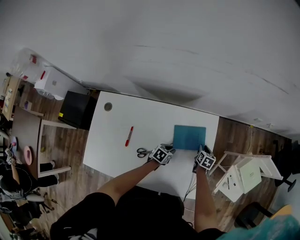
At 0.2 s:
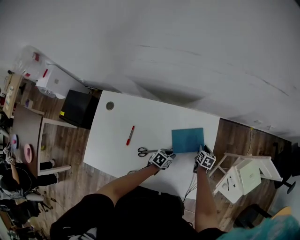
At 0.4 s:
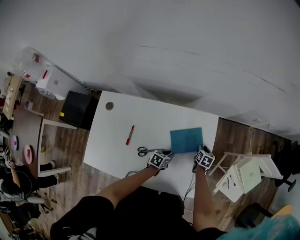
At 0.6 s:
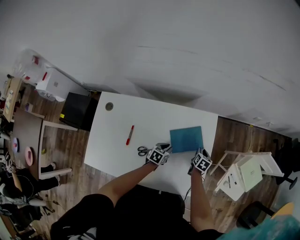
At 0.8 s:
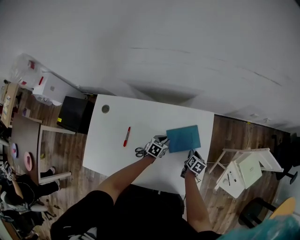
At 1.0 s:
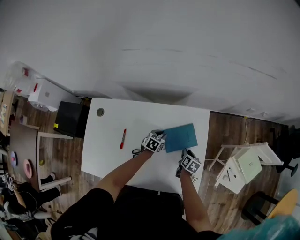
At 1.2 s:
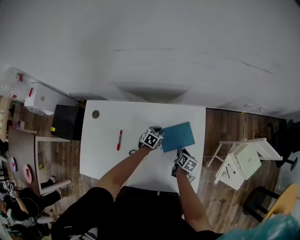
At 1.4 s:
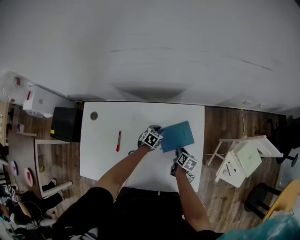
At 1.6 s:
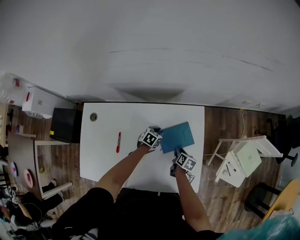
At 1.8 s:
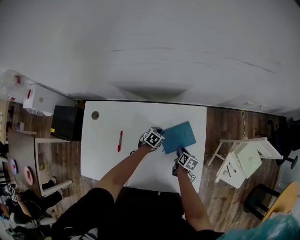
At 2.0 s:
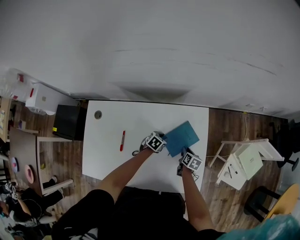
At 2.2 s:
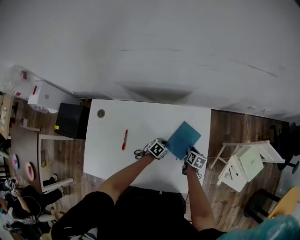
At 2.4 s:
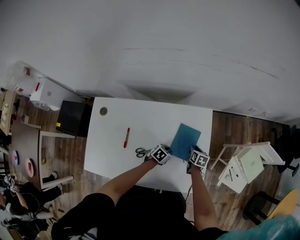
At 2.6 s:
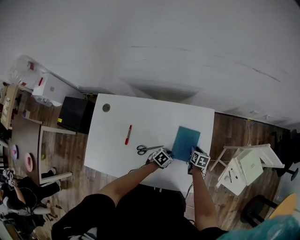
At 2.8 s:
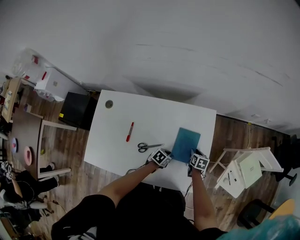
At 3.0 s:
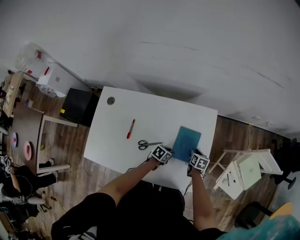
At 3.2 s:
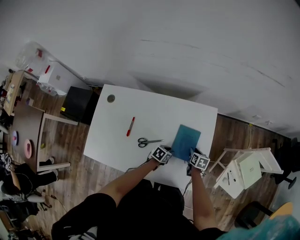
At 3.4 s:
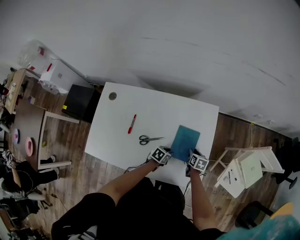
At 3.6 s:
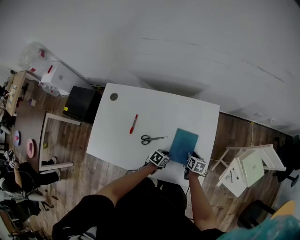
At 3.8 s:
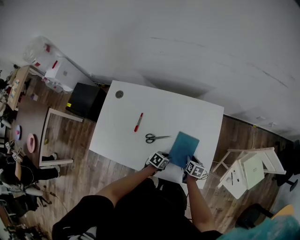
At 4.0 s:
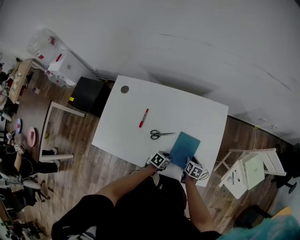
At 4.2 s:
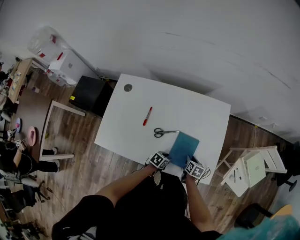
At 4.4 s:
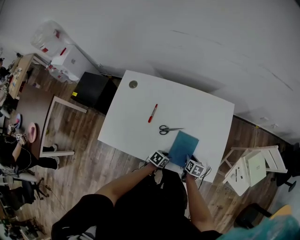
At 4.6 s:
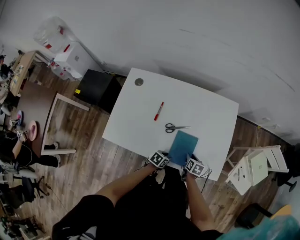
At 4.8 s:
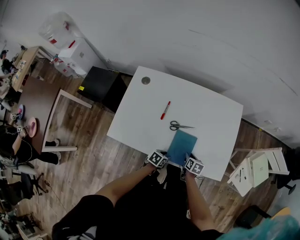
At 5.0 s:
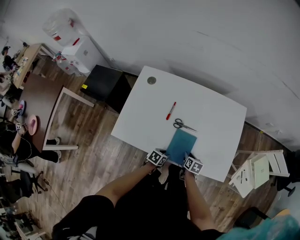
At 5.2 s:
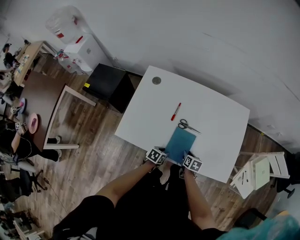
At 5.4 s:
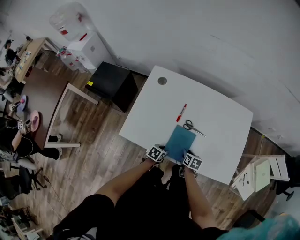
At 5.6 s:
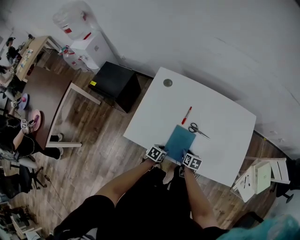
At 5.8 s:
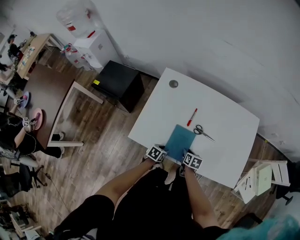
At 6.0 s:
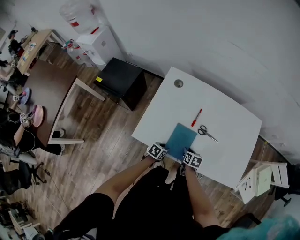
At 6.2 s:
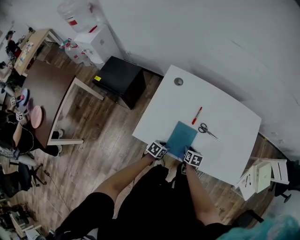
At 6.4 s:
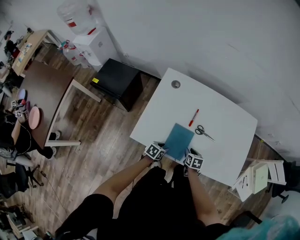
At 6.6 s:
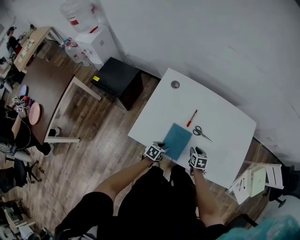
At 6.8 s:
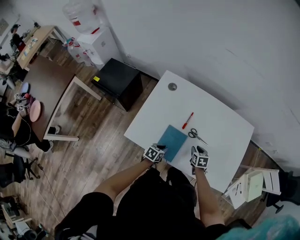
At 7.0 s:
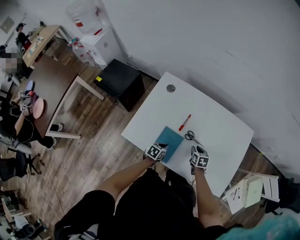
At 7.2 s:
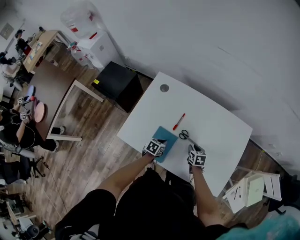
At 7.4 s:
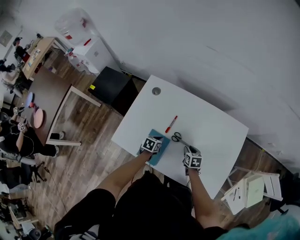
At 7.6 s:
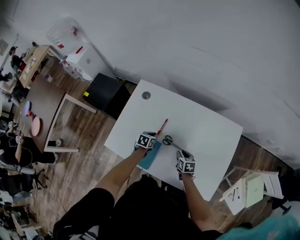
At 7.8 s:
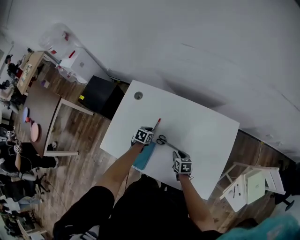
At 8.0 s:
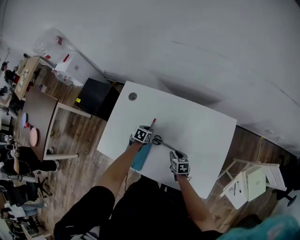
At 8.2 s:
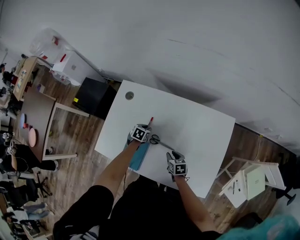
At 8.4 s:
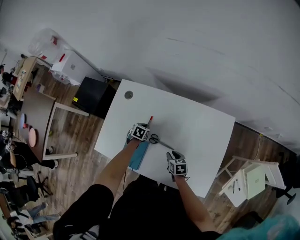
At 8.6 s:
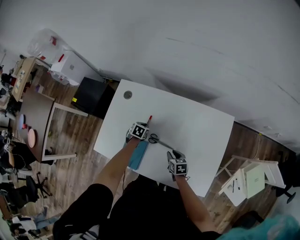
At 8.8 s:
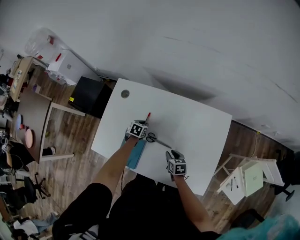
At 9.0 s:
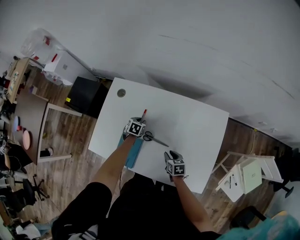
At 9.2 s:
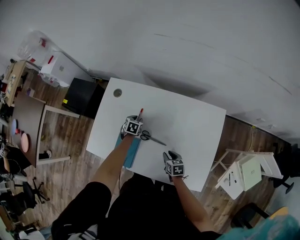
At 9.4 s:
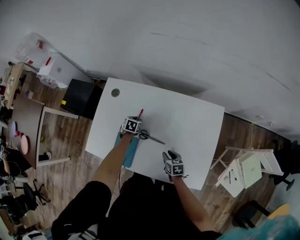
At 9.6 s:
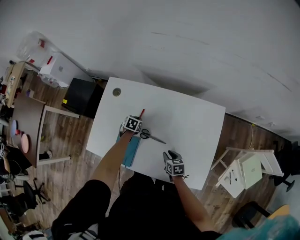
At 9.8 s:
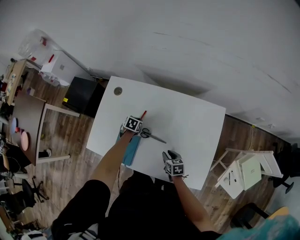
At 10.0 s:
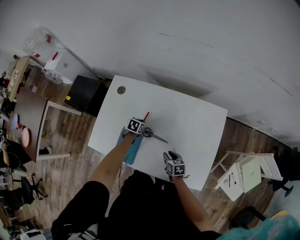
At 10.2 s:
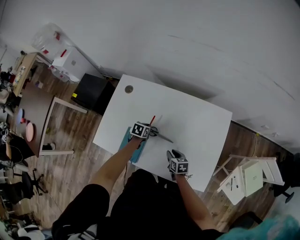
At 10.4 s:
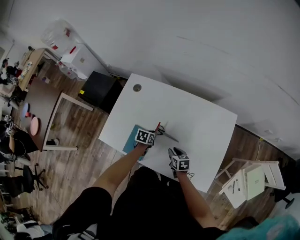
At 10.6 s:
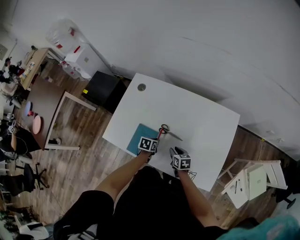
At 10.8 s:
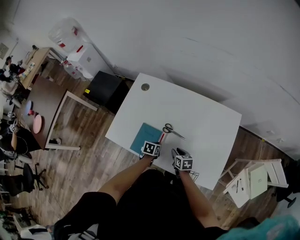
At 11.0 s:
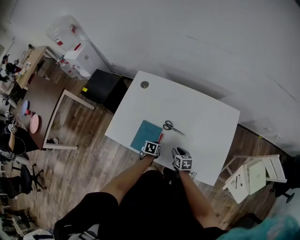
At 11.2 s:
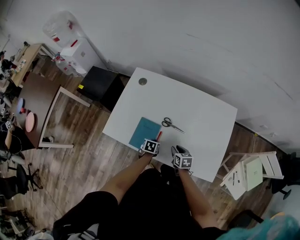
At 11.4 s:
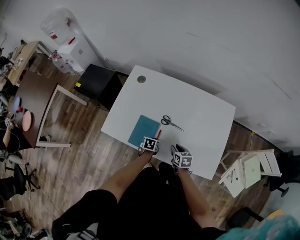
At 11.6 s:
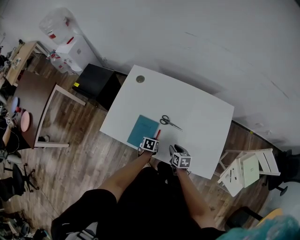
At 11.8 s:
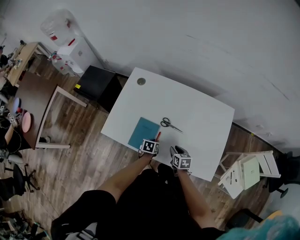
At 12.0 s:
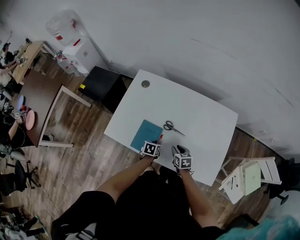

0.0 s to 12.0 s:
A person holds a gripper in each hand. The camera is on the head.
0.0 to 1.6 s: The left gripper travels forward and to the left by roughly 10 cm, while the right gripper travels backward and to the left by approximately 10 cm, and rotates approximately 20 degrees.
1.6 to 3.0 s: The left gripper moves backward and to the right, about 15 cm. Meanwhile the right gripper changes its angle by roughly 20 degrees.
3.0 to 4.4 s: Both grippers move backward, approximately 20 cm.
4.4 to 6.0 s: Both grippers travel together to the left, some 30 cm.
6.0 to 7.6 s: The right gripper moves to the right and forward, some 20 cm; the left gripper heads forward, covering roughly 20 cm, and closes its fingers.
7.6 to 9.0 s: The left gripper goes about 10 cm forward, and opens. The right gripper moves about 5 cm.
9.0 to 10.4 s: The left gripper goes about 10 cm backward.
10.4 to 12.0 s: The left gripper moves backward, approximately 10 cm.

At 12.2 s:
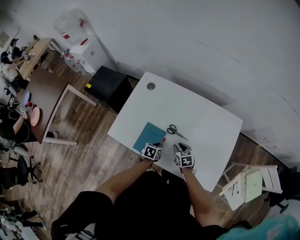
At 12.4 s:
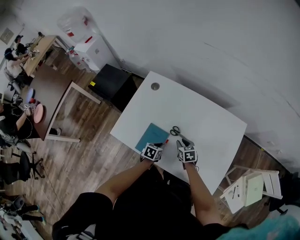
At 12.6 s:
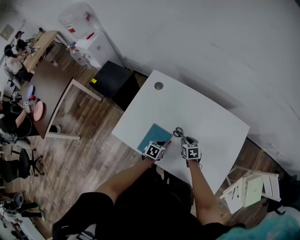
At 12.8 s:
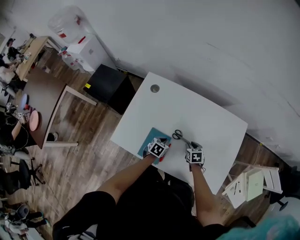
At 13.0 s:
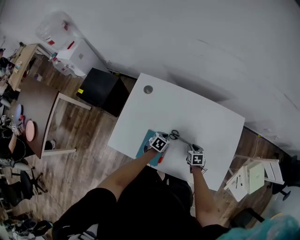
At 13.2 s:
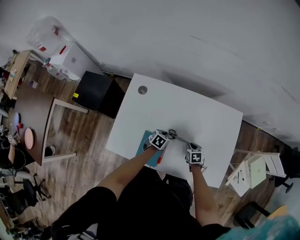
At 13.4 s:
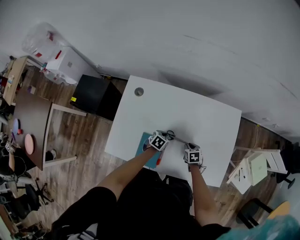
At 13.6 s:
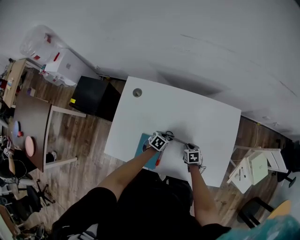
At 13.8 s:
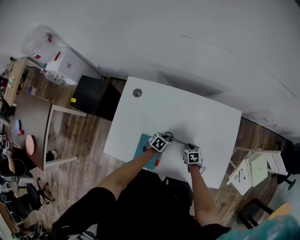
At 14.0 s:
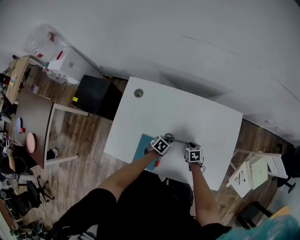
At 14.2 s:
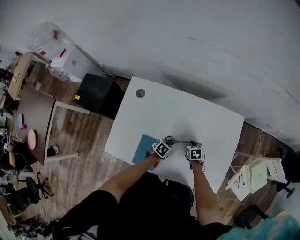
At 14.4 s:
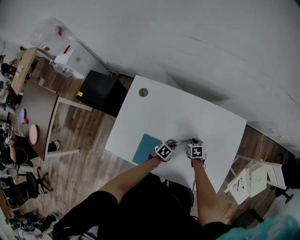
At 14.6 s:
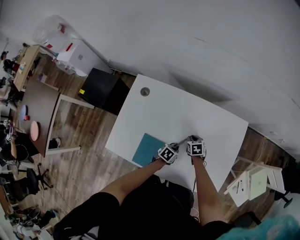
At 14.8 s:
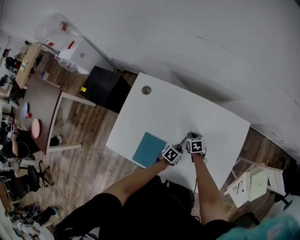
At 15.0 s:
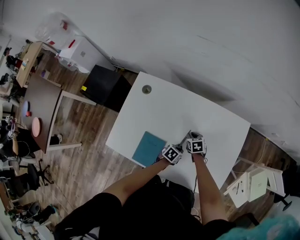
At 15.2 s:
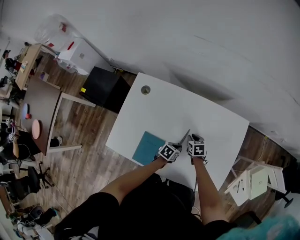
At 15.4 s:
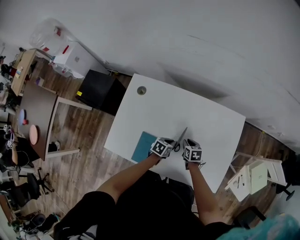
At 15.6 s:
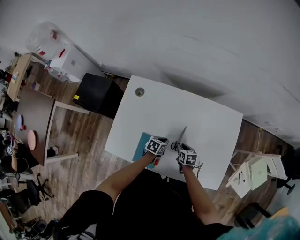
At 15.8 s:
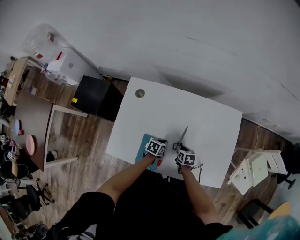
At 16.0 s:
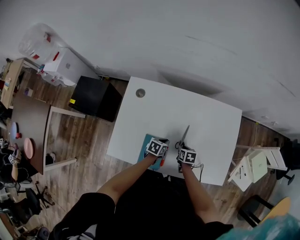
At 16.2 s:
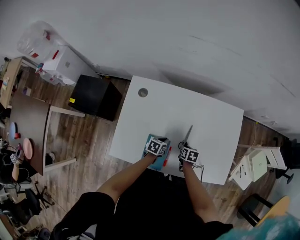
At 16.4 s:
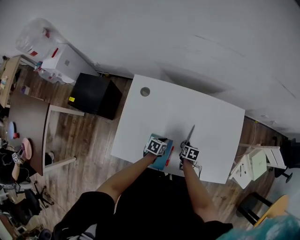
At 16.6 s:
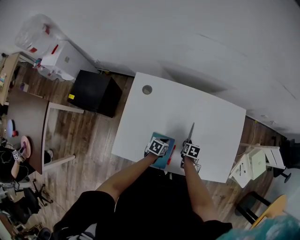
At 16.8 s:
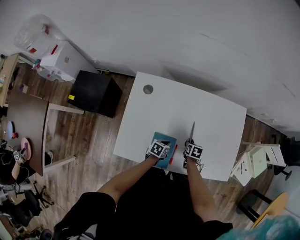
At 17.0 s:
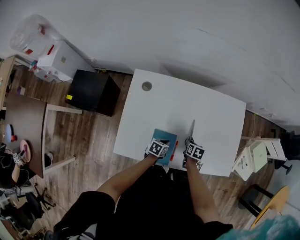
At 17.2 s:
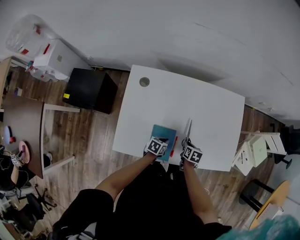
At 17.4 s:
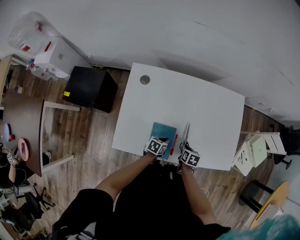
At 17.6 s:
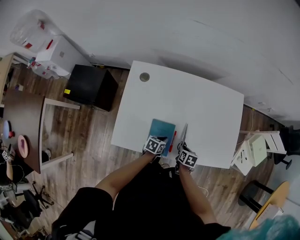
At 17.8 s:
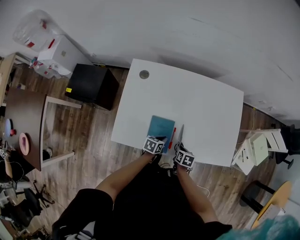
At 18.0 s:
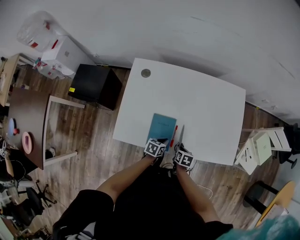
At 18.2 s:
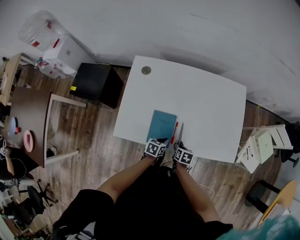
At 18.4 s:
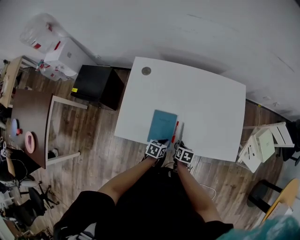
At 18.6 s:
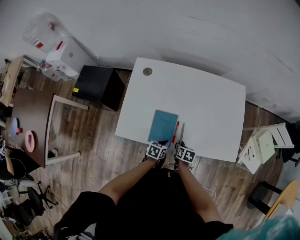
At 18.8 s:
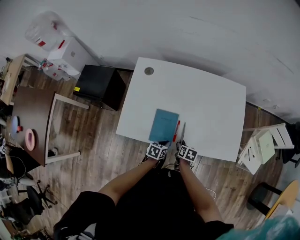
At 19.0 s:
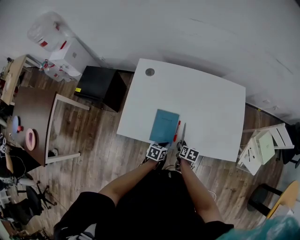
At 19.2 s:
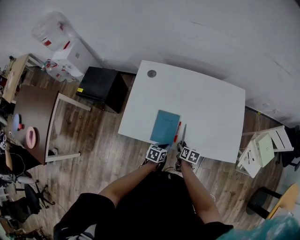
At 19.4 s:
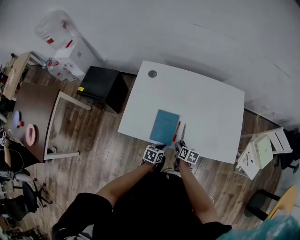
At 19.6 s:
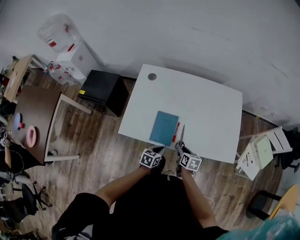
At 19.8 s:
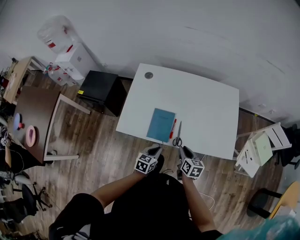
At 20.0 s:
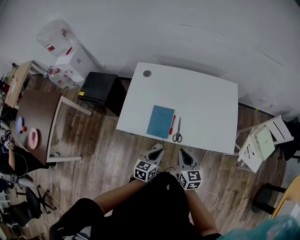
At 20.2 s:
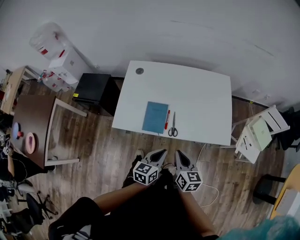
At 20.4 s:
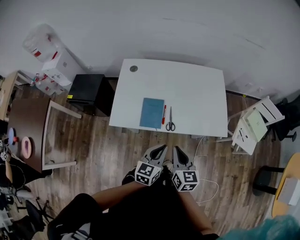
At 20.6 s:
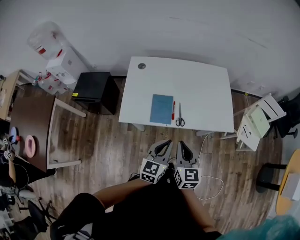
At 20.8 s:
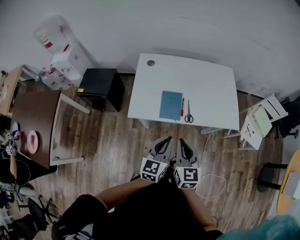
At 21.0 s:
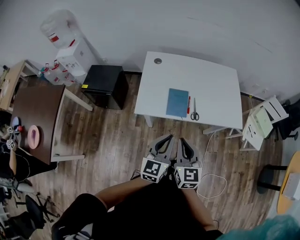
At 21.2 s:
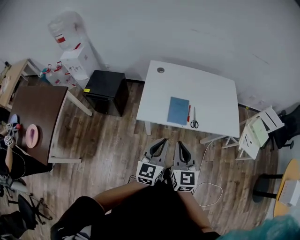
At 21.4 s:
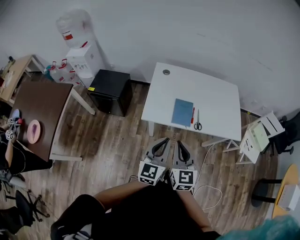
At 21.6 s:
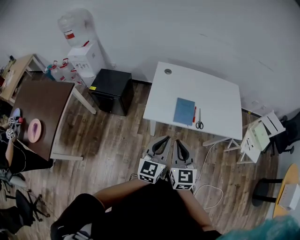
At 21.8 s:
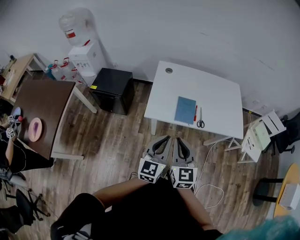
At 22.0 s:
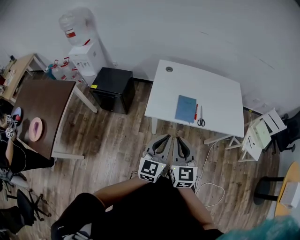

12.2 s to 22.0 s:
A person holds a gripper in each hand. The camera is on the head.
12.2 to 13.6 s: The left gripper travels forward by approximately 10 cm, and changes its angle by roughly 30 degrees. The right gripper is displaced downward, to the right and forward by approximately 10 cm, and swivels roughly 20 degrees.
13.6 to 15.0 s: The left gripper heads to the right, covering roughly 10 cm, while the right gripper moves forward and to the left, about 10 cm.
15.0 to 16.4 s: The right gripper moves backward, about 10 cm, and swivels approximately 40 degrees. Meanwhile the left gripper heads to the left, covering some 15 cm.
16.4 to 17.8 s: Both grippers travel together backward, some 10 cm.
17.8 to 19.2 s: The left gripper travels backward by some 10 cm.
19.2 to 20.6 s: Both grippers move upward and backward, about 35 cm. The right gripper tilts its fingers about 40 degrees upward, and closes up, while the left gripper points its fingers about 30 degrees further upward.
20.6 to 22.0 s: The two grippers go approximately 20 cm to the left and backward.

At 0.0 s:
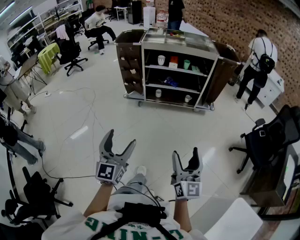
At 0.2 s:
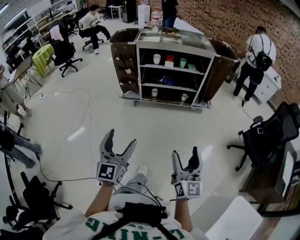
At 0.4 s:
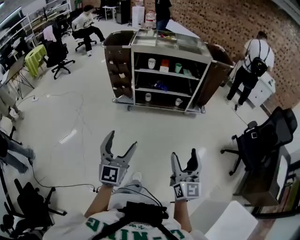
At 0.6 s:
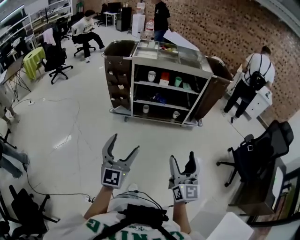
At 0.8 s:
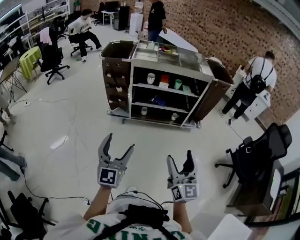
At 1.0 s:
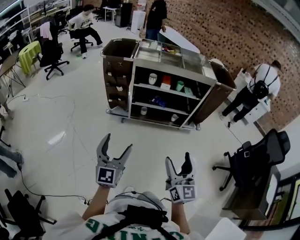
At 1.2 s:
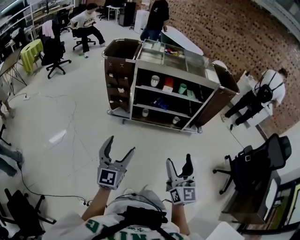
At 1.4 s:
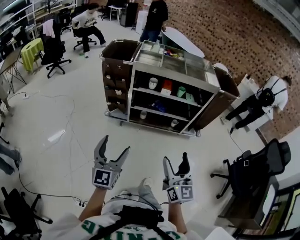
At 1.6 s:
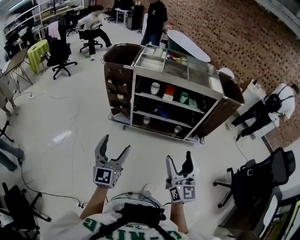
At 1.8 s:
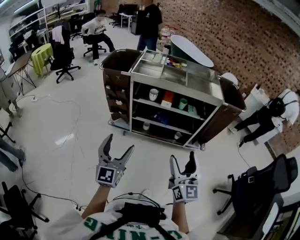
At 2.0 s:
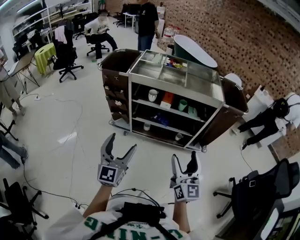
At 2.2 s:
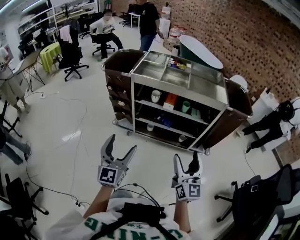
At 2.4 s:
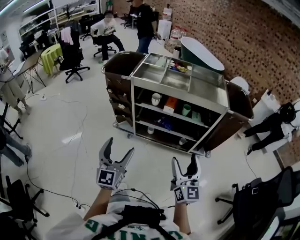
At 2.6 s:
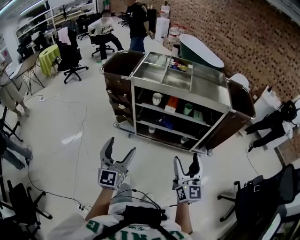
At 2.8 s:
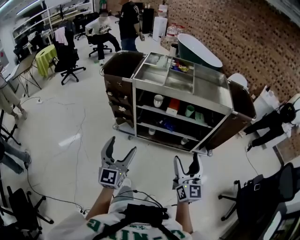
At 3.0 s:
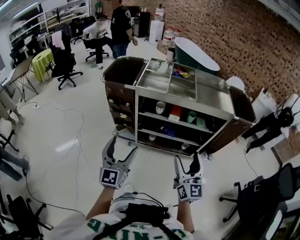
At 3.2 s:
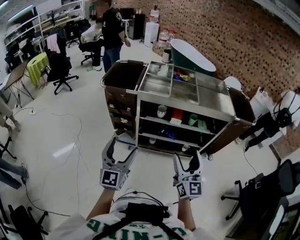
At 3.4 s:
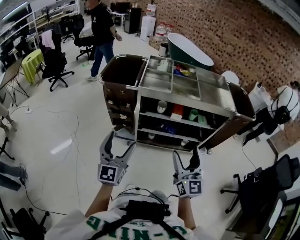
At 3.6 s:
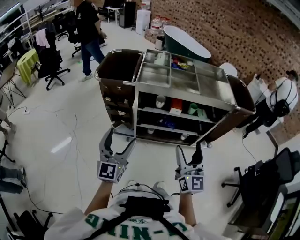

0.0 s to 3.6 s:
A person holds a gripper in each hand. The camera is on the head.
0.0 to 1.8 s: Both grippers move forward, approximately 40 cm.
1.8 to 3.6 s: The two grippers go approximately 20 cm forward and to the left.
